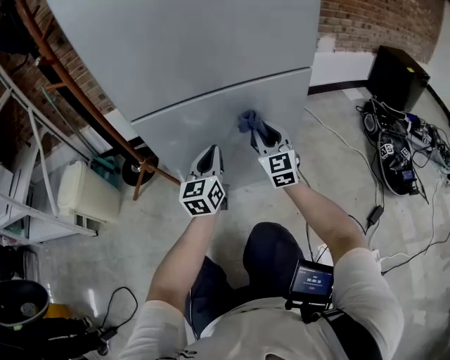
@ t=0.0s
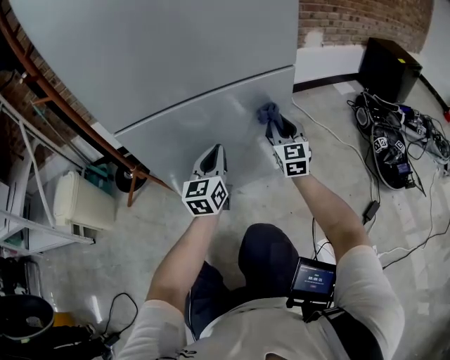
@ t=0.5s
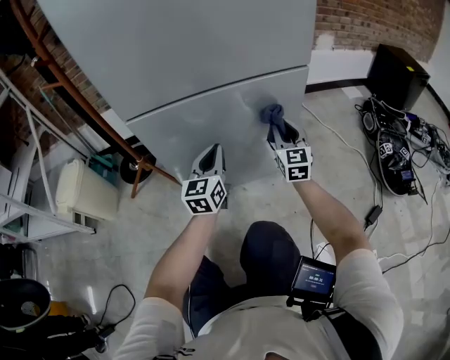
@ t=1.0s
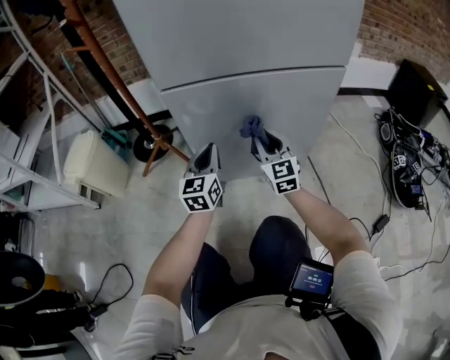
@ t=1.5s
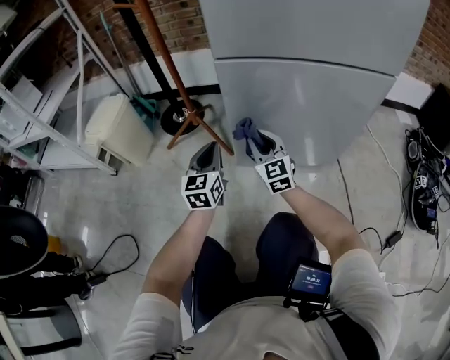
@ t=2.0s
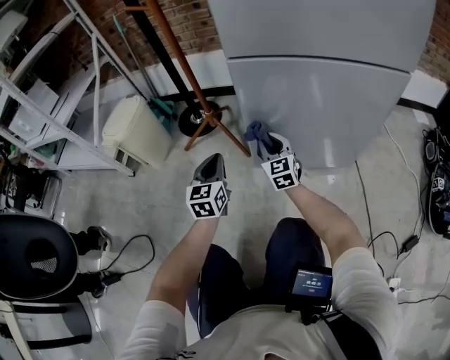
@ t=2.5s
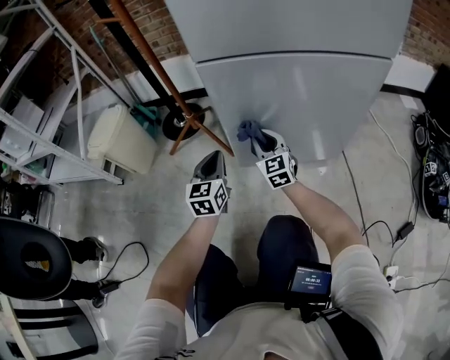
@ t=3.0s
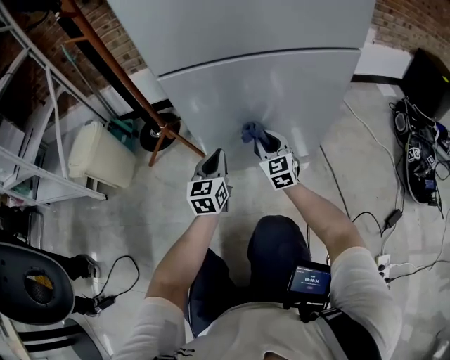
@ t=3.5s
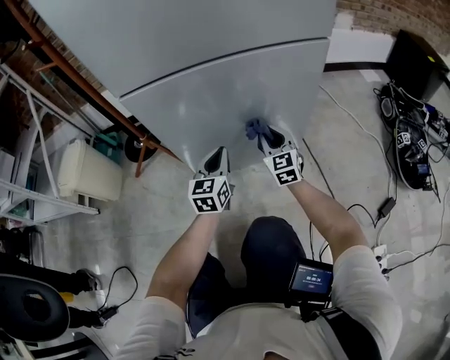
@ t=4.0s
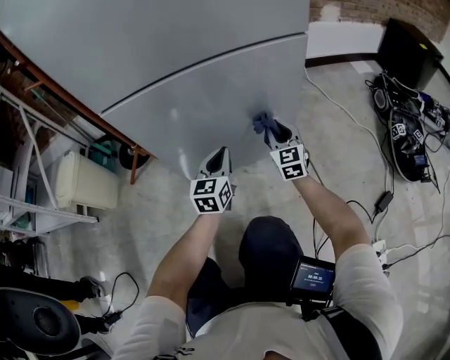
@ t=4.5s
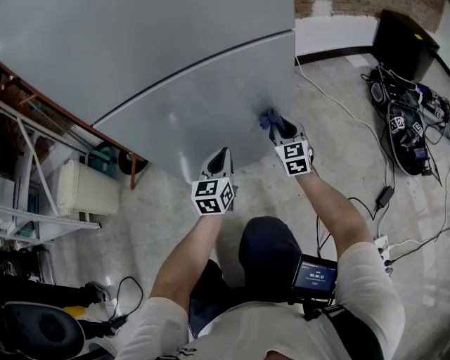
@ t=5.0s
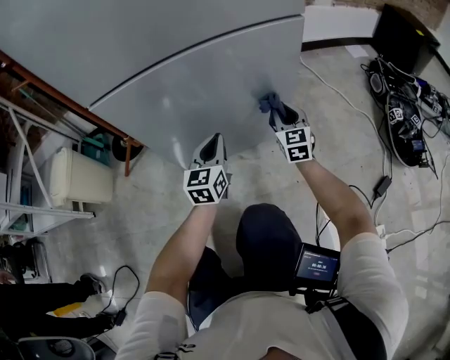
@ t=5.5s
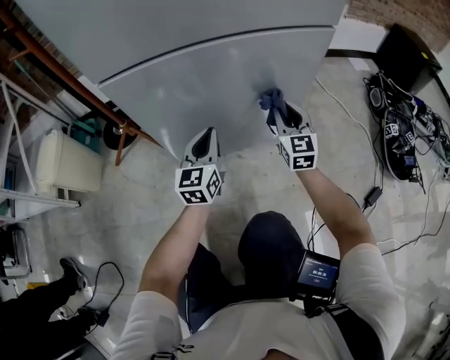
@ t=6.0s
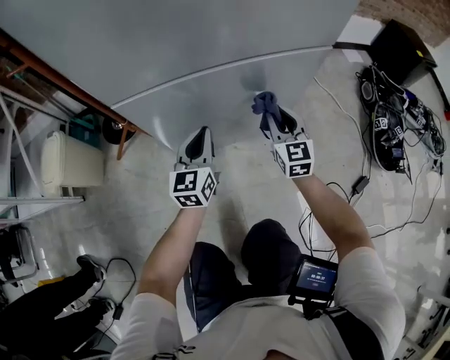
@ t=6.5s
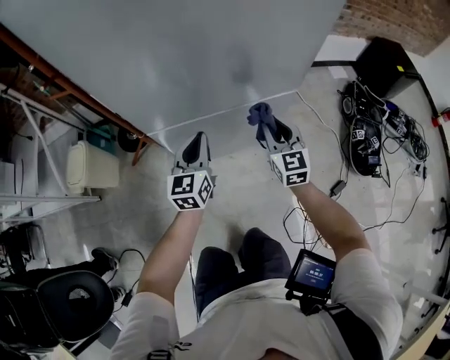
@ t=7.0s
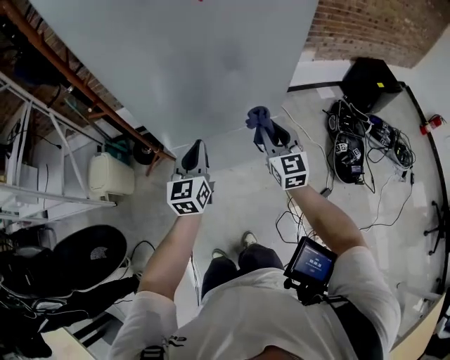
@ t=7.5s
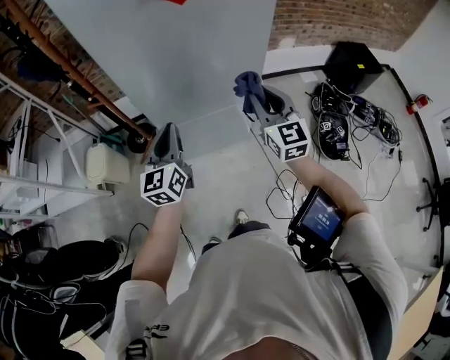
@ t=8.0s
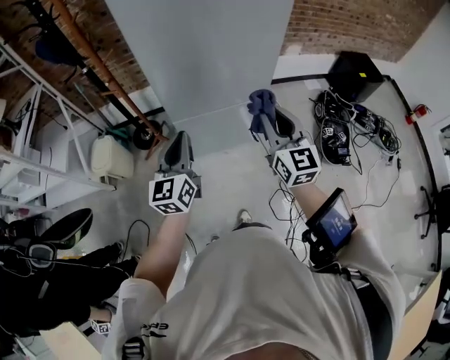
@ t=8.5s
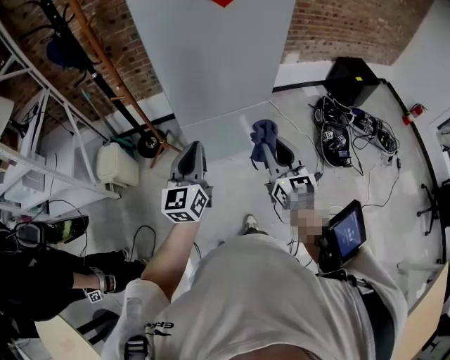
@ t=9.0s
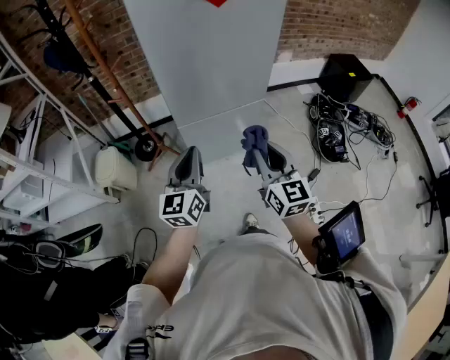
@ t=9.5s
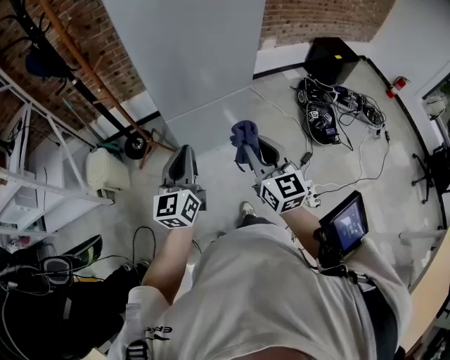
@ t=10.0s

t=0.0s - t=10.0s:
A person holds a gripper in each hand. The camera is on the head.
t=0.0s - t=2.0s: The right gripper shifts by roughly 25 cm, and changes its angle by some 20 degrees; the left gripper ends up approximately 25 cm from where it was.
t=2.0s - t=4.0s: The two grippers go some 25 cm to the right.
t=4.0s - t=6.0s: The right gripper moves to the right and upward, roughly 10 cm.
t=6.0s - t=8.0s: Both grippers travel together upward, about 60 cm.
t=8.0s - t=10.0s: The left gripper goes about 15 cm backward, while the right gripper moves backward and to the left, some 25 cm.

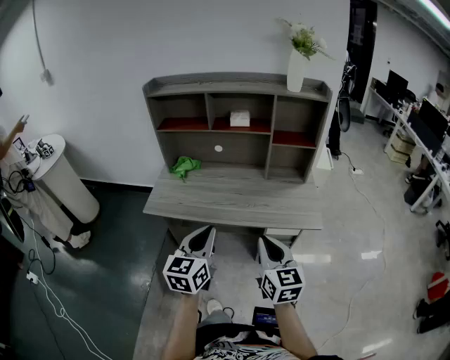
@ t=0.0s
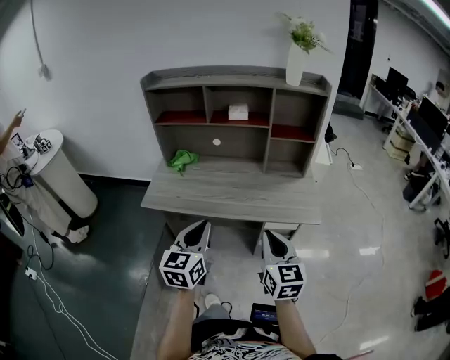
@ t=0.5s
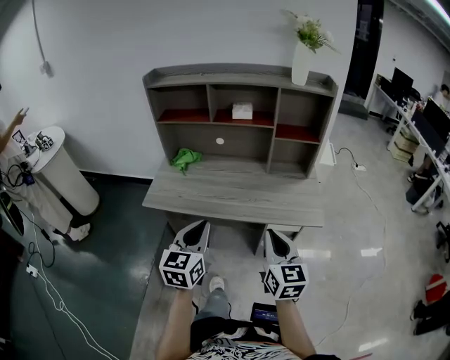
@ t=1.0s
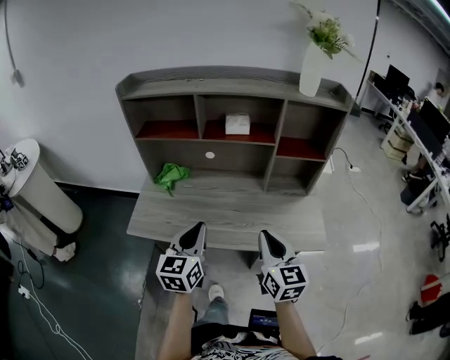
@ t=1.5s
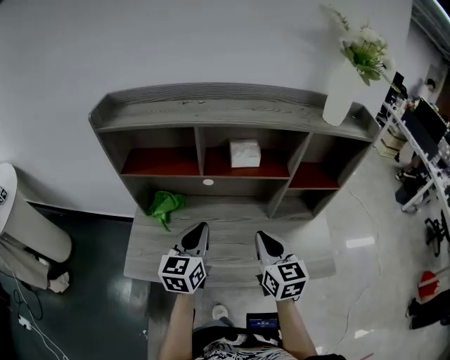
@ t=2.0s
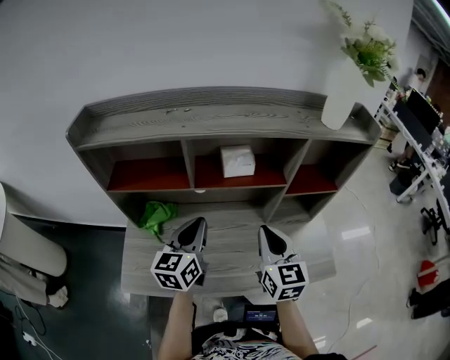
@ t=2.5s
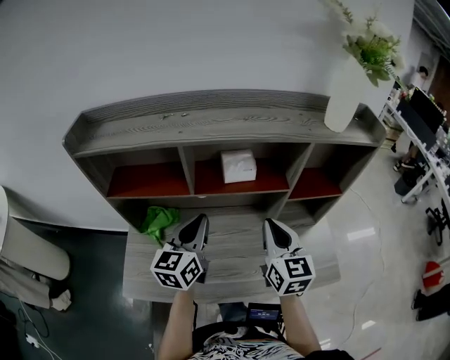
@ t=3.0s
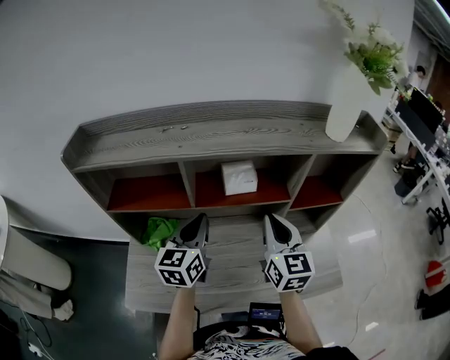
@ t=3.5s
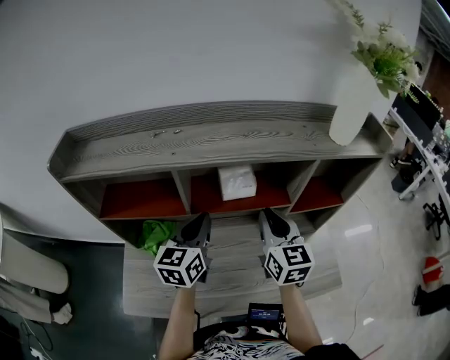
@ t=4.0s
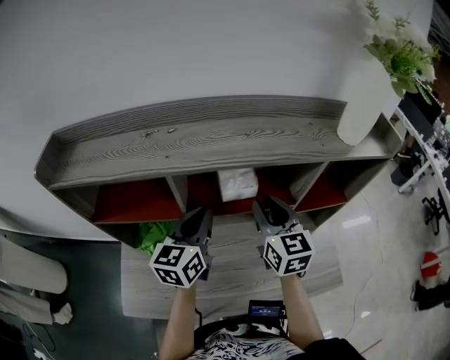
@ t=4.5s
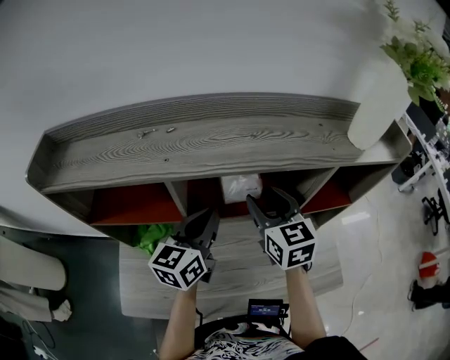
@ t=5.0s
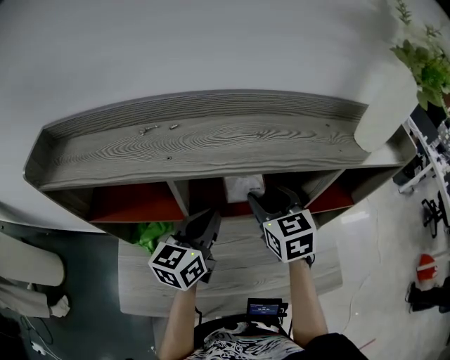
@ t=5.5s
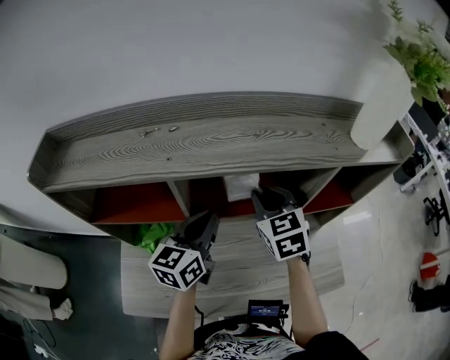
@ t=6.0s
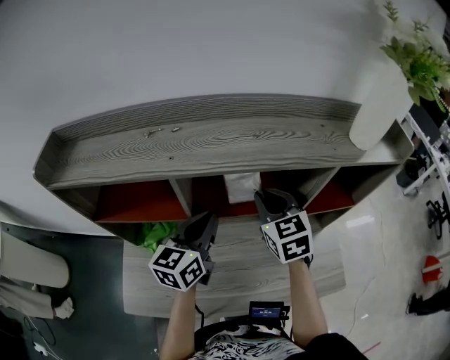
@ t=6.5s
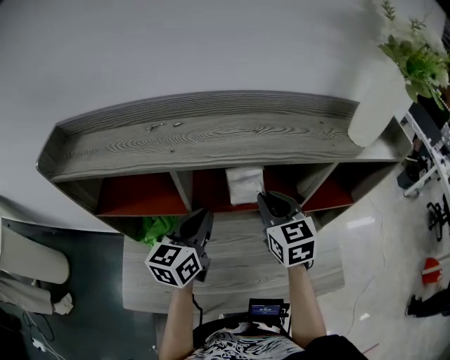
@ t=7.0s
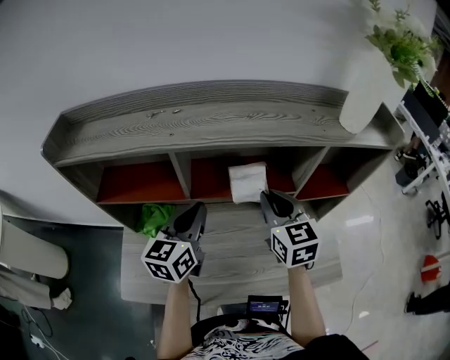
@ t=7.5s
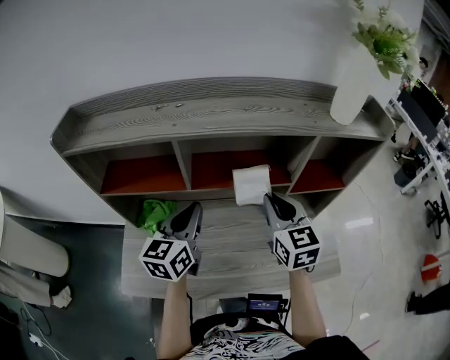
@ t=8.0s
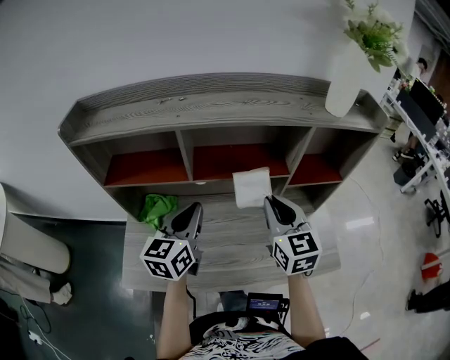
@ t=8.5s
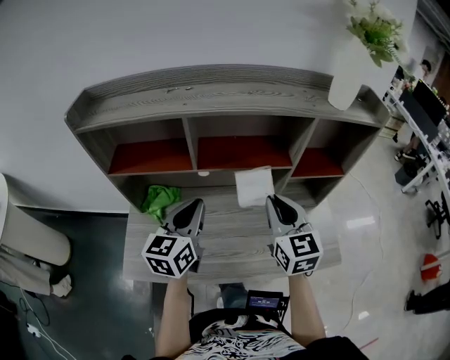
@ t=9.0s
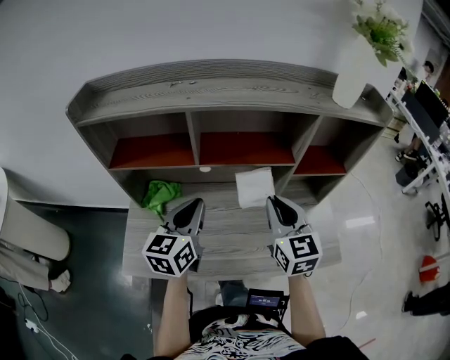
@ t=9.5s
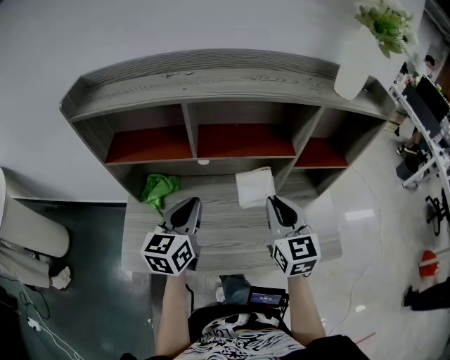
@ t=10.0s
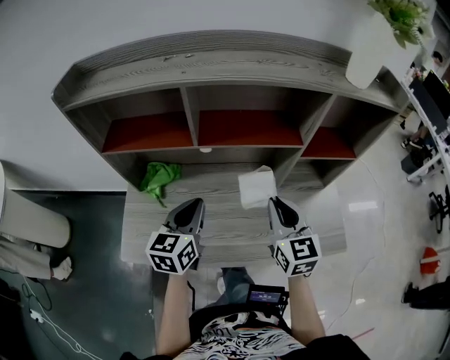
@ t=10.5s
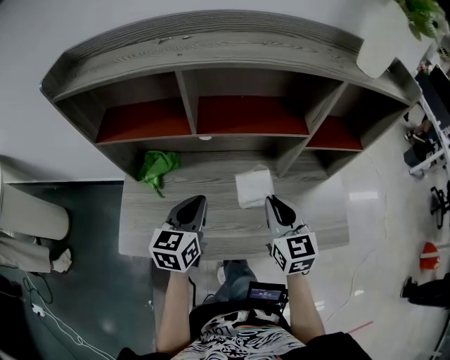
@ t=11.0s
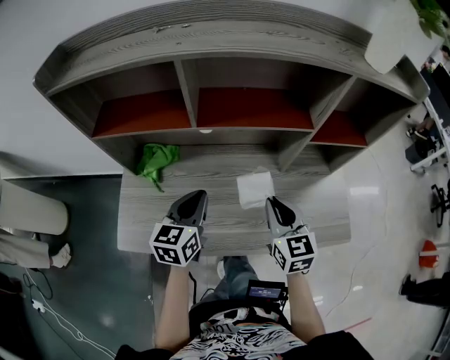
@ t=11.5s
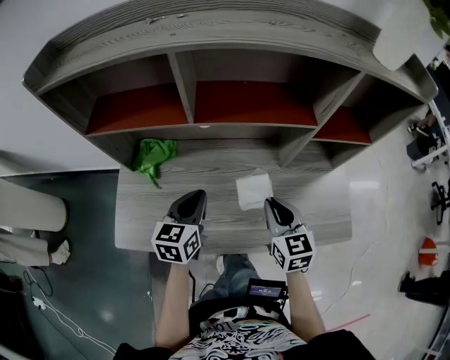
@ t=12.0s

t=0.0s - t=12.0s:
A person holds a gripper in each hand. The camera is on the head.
t=0.0s - t=2.0s: The grippers both shift forward by about 35 cm.
t=2.0s - t=4.0s: Both grippers travel together forward, roughly 15 cm.
t=4.0s - t=6.0s: The right gripper is displaced forward by some 10 cm, turns by about 30 degrees, and opens, then closes again.
t=6.0s - t=8.0s: Both grippers move backward, approximately 10 cm.
t=8.0s - t=10.0s: The two grippers go some 5 cm backward.
t=10.0s - t=12.0s: The two grippers go roughly 15 cm downward.

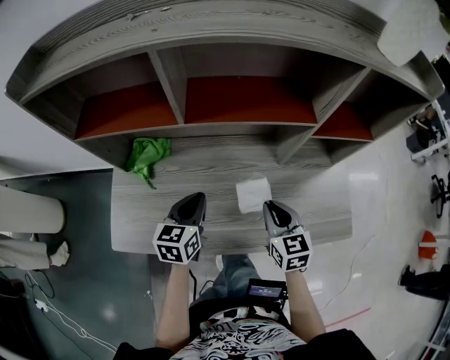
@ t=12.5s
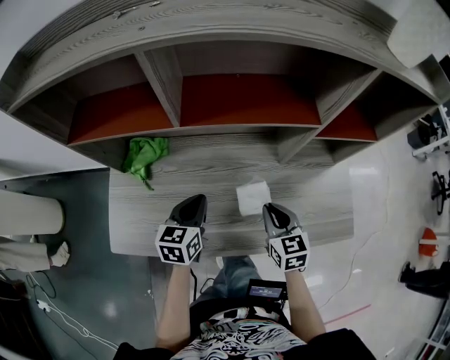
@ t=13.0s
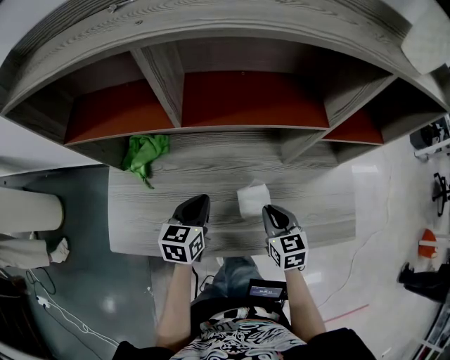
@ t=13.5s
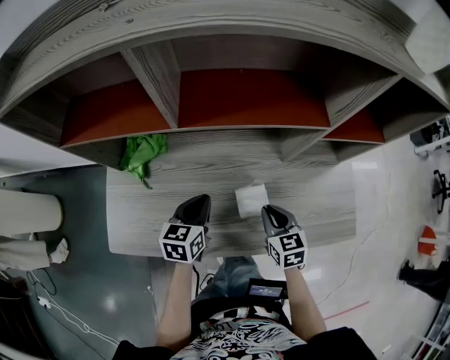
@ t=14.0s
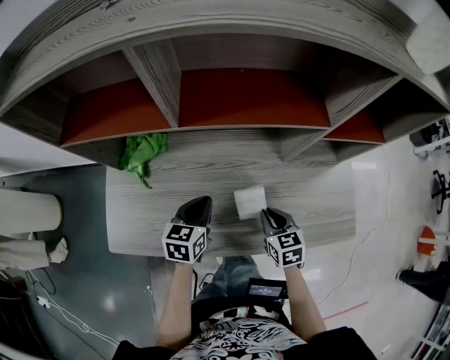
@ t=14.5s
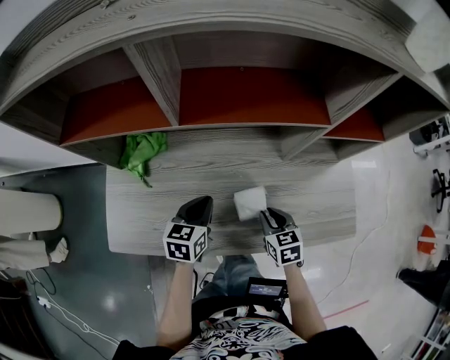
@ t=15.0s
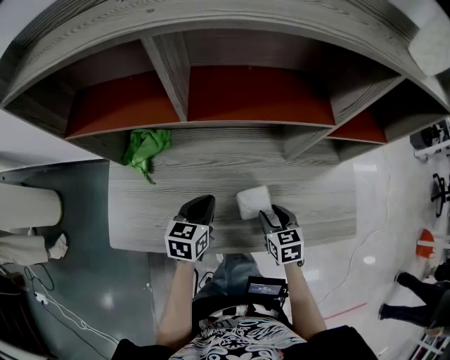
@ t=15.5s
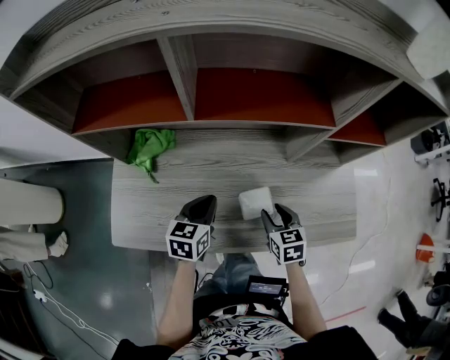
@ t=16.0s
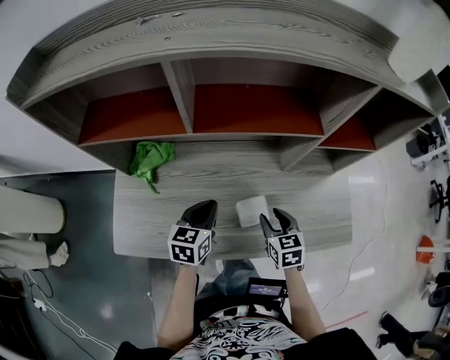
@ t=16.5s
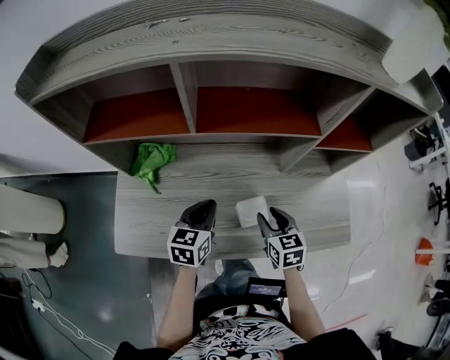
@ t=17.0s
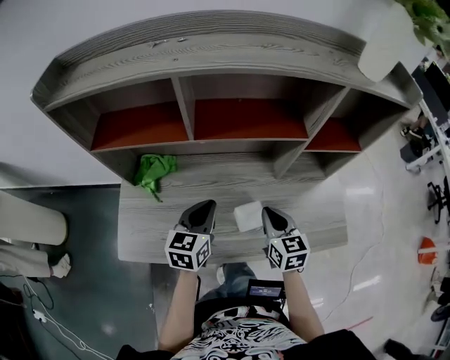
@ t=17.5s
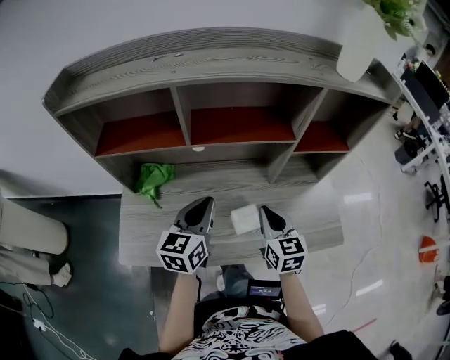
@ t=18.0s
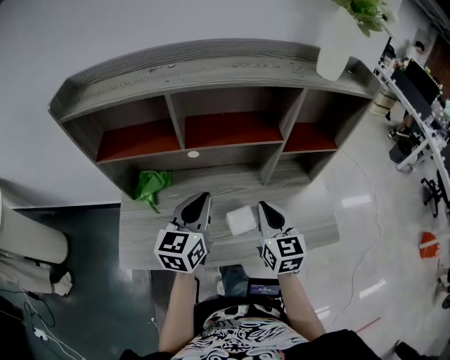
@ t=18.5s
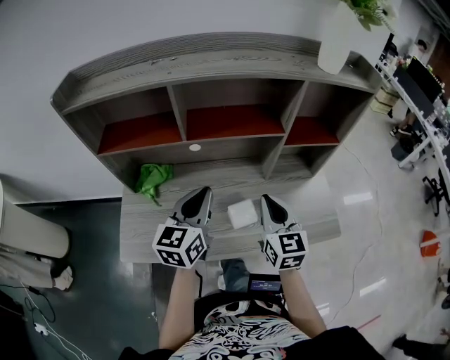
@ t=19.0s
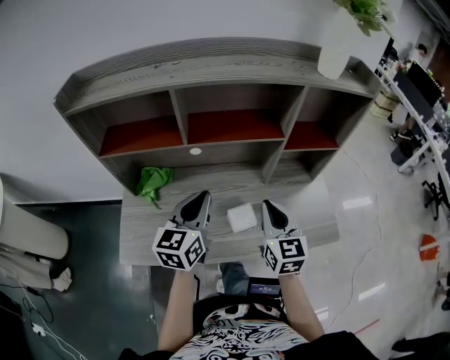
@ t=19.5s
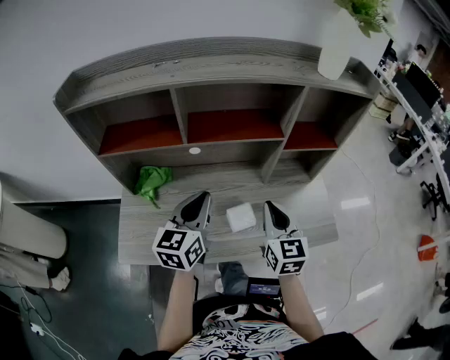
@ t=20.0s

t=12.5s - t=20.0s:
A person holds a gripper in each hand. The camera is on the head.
t=12.5s - t=14.5s: The left gripper heads downward, covering about 5 cm. Meanwhile the right gripper shifts some 10 cm downward.
t=14.5s - t=16.5s: The right gripper opens.
t=16.5s - t=18.0s: Both grippers travel together upward, some 15 cm. The right gripper turns by roughly 20 degrees, and closes.
t=18.0s - t=20.0s: The right gripper travels upward by some 5 cm.
